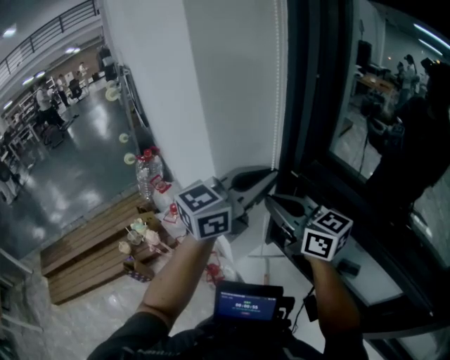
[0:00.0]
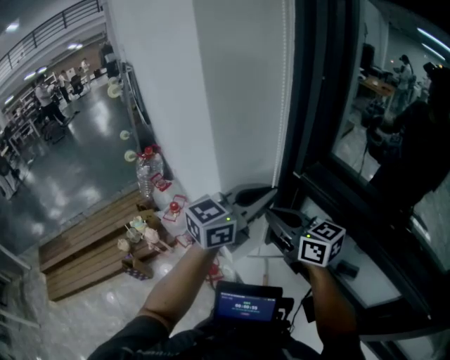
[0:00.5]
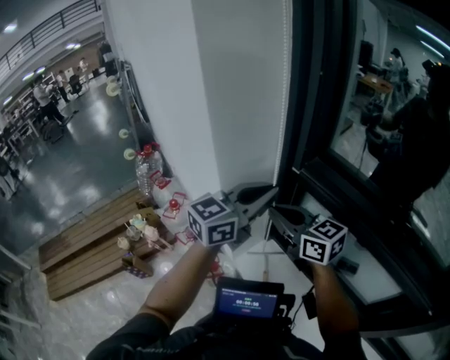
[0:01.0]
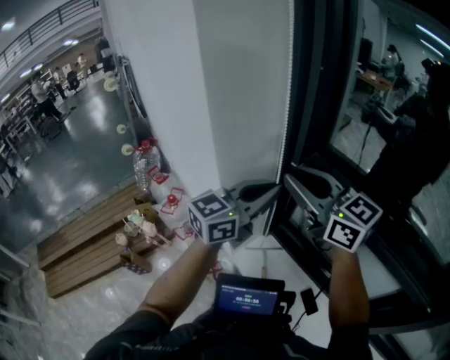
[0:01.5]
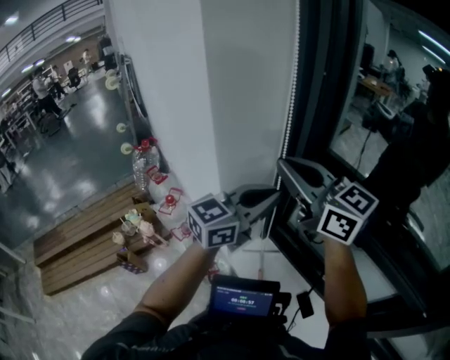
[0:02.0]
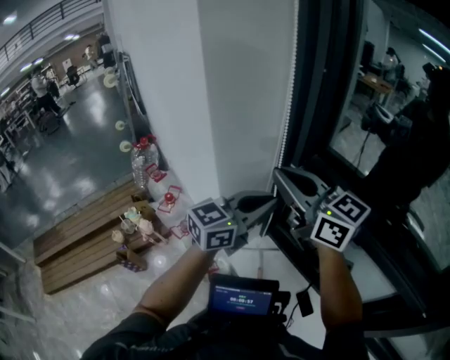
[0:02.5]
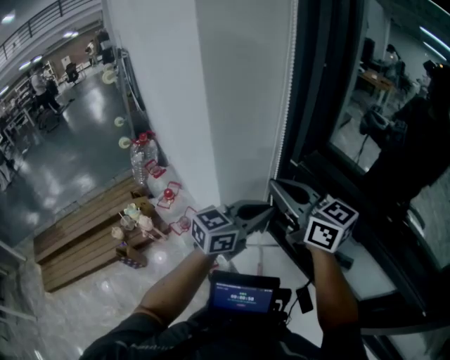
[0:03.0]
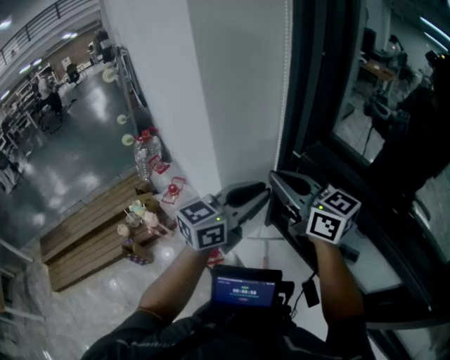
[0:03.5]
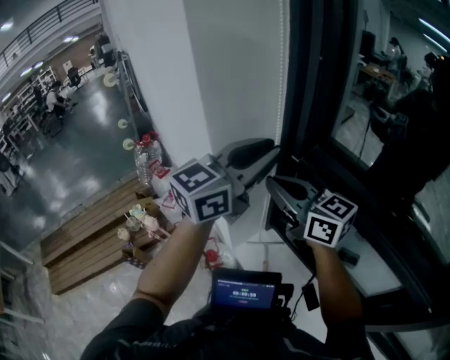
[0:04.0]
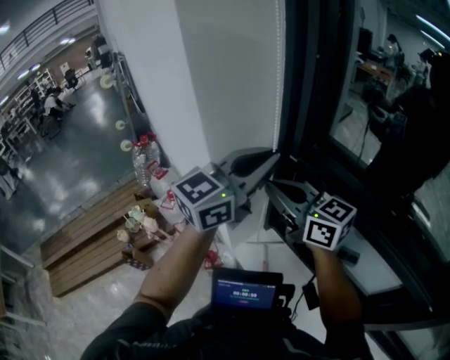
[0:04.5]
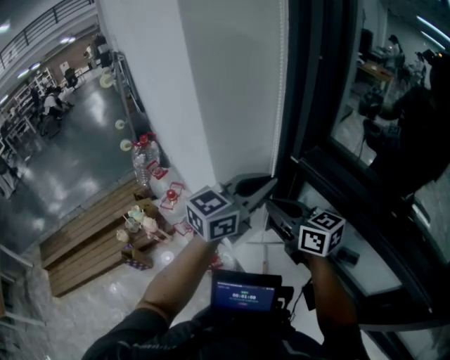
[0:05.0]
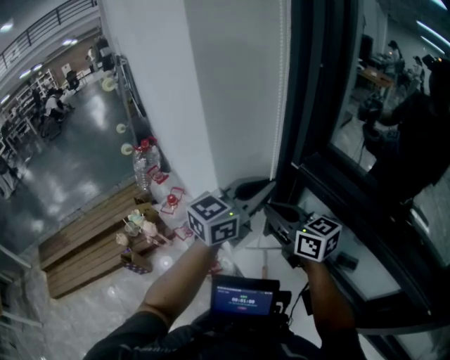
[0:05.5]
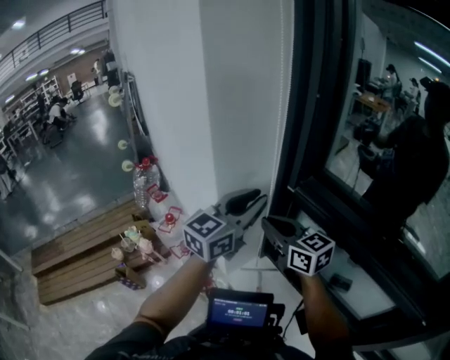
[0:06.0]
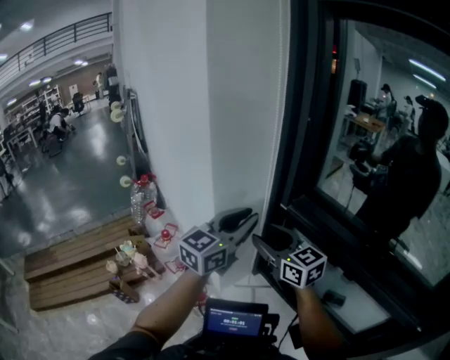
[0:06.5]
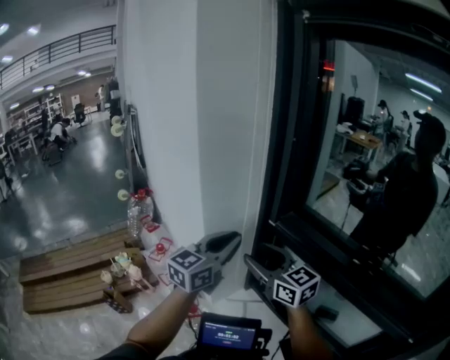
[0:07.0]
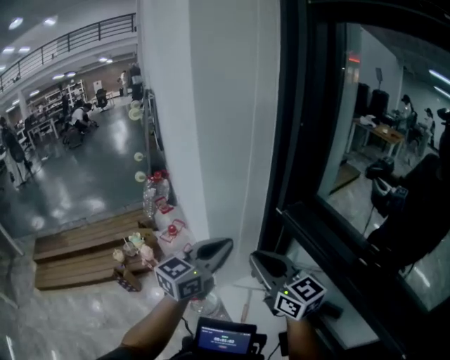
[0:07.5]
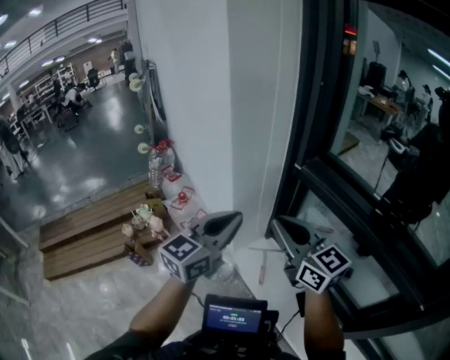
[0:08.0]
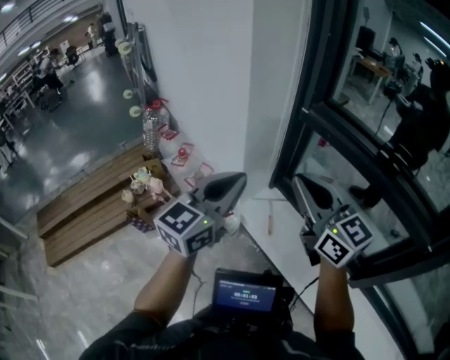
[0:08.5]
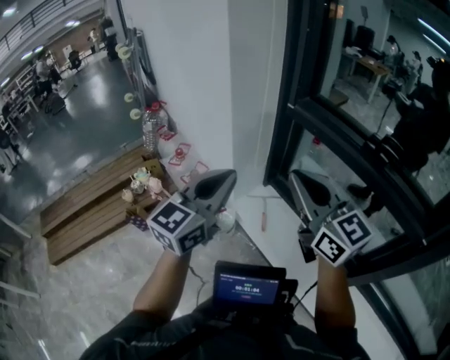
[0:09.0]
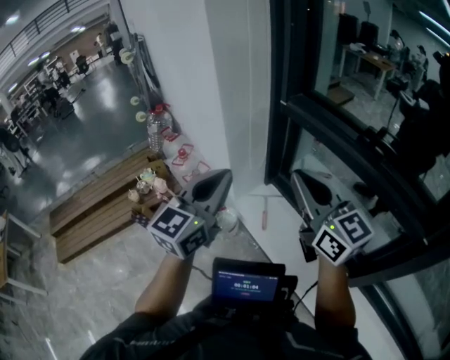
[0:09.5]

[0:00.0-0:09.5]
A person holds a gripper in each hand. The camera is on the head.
0:00.0 to 0:02.0: The right gripper is displaced upward by about 10 cm. The left gripper is displaced downward by roughly 5 cm.
0:02.0 to 0:04.0: The right gripper travels downward by about 10 cm; the left gripper shifts some 10 cm upward.
0:04.0 to 0:05.5: Both grippers move downward, roughly 10 cm.
0:05.5 to 0:07.5: The left gripper moves backward, approximately 10 cm, while the right gripper moves backward and upward, some 10 cm, and opens, then closes once more.
0:07.5 to 0:09.5: Both grippers move backward, some 20 cm.

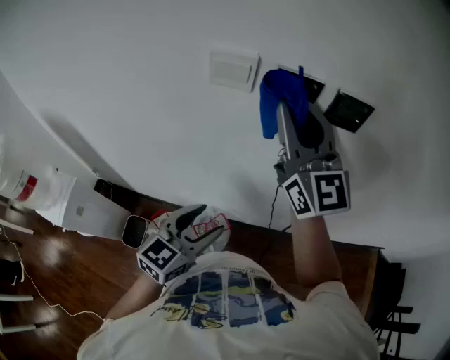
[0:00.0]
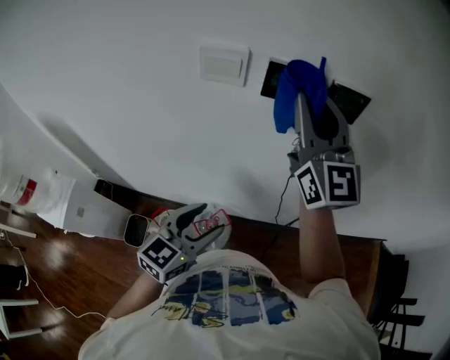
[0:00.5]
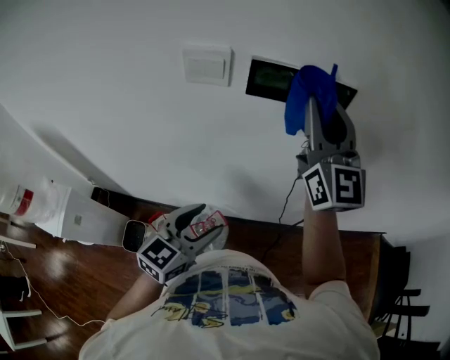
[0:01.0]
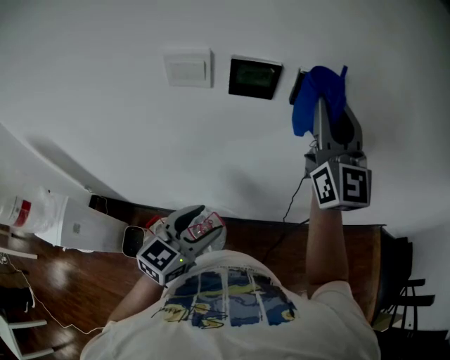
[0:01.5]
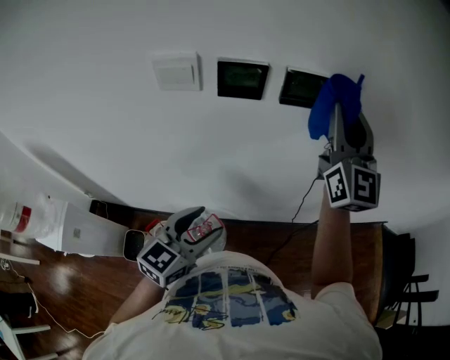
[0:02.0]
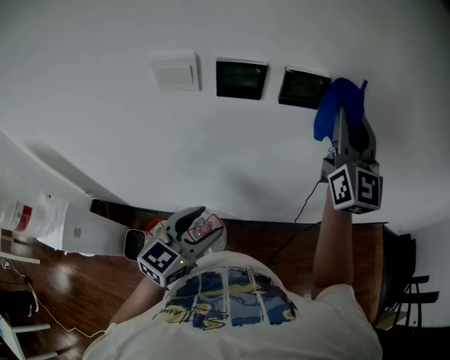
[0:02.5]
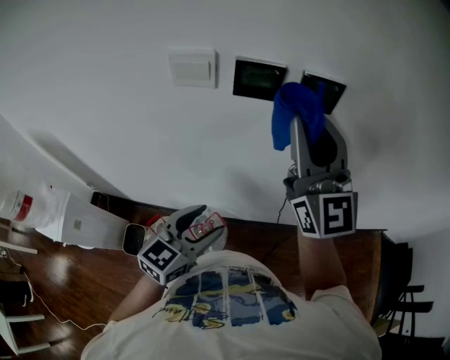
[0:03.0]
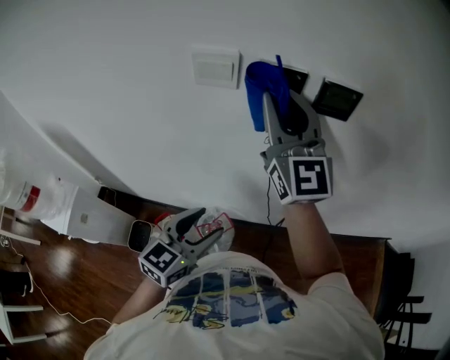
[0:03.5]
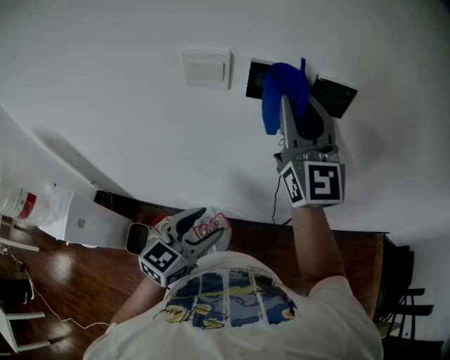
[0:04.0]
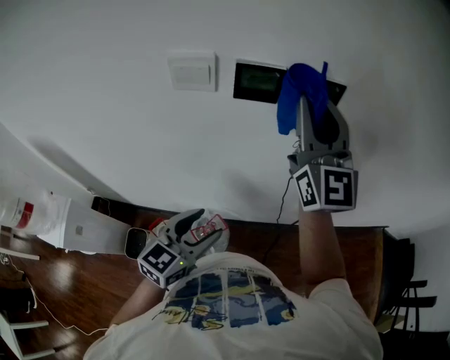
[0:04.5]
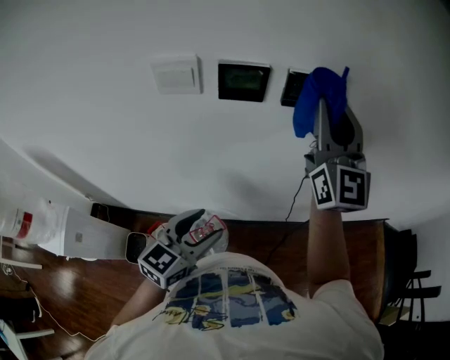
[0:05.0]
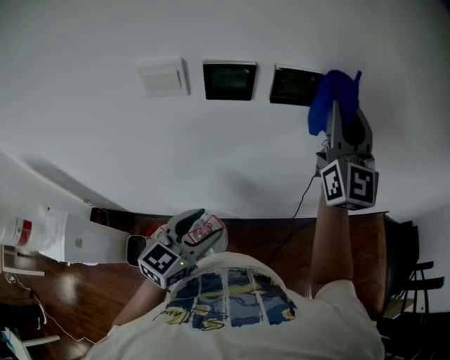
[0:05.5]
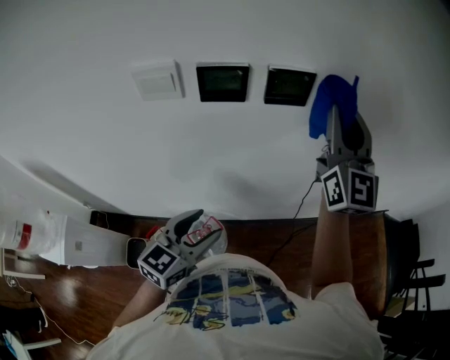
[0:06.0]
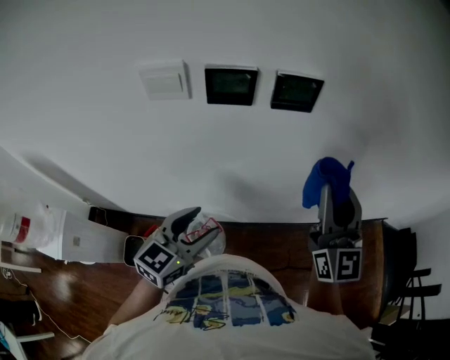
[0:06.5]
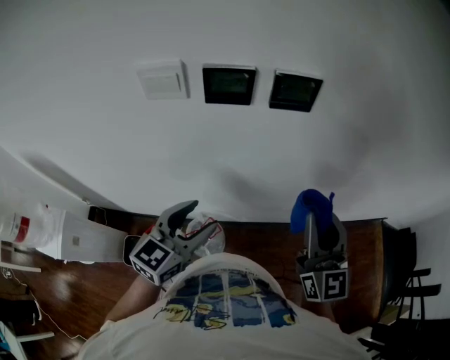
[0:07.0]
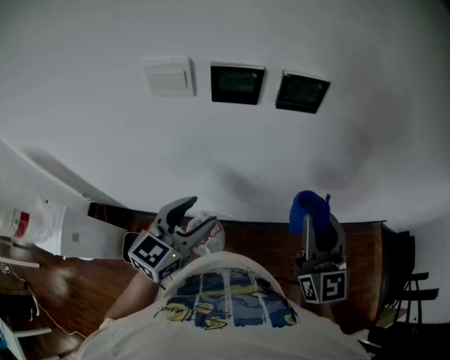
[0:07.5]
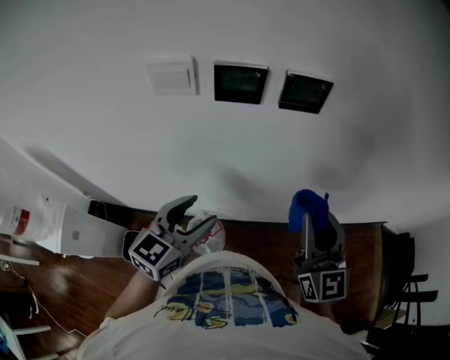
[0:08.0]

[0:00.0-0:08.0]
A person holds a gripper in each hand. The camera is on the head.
0:00.0 to 0:02.0: The left gripper goes roughly 5 cm to the right; the right gripper is displaced to the right by some 20 cm, and swivels some 20 degrees.
0:02.0 to 0:04.0: The right gripper is displaced to the left by roughly 15 cm.
0:04.0 to 0:06.0: The right gripper heads to the right, covering some 20 cm.
0:06.0 to 0:08.0: The right gripper travels backward and downward by some 20 cm.

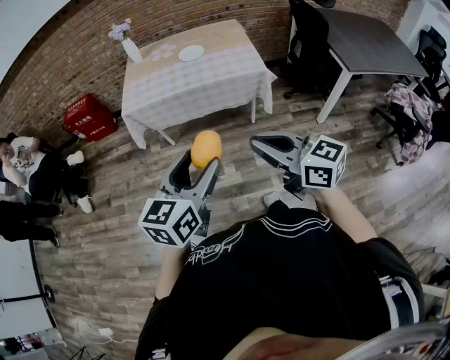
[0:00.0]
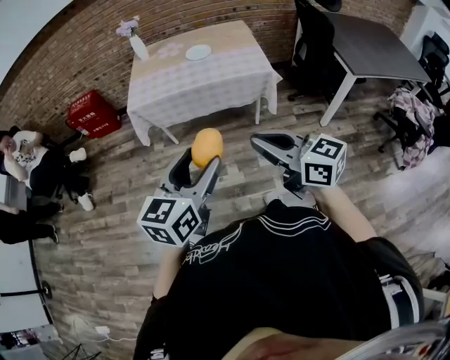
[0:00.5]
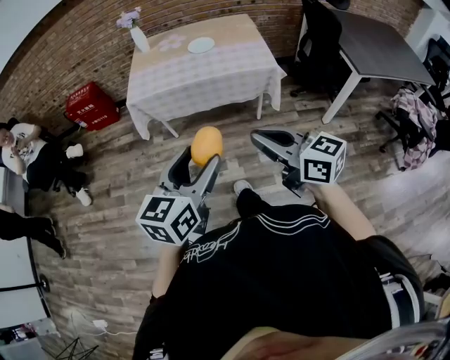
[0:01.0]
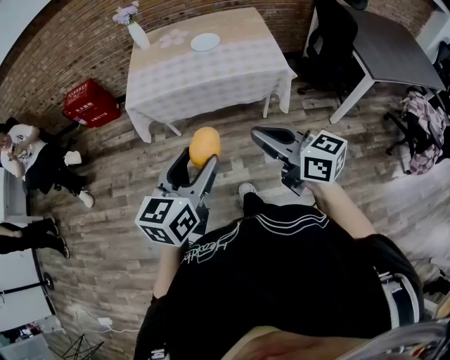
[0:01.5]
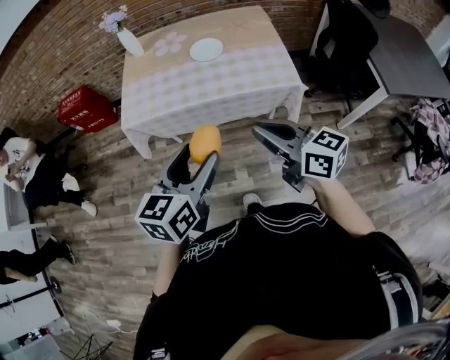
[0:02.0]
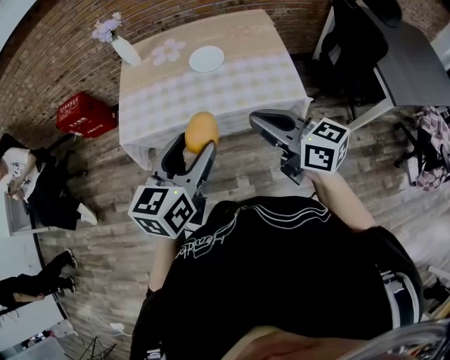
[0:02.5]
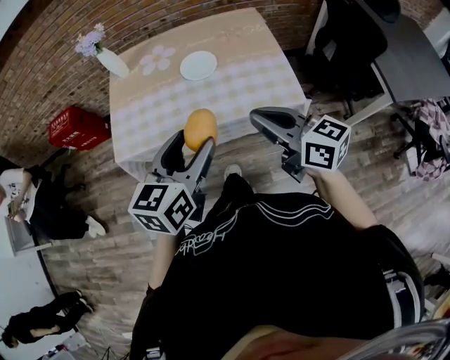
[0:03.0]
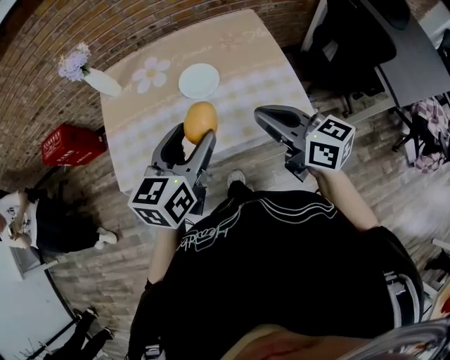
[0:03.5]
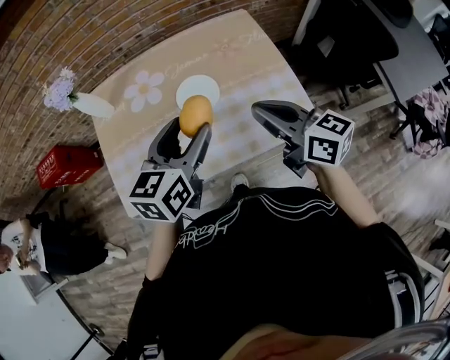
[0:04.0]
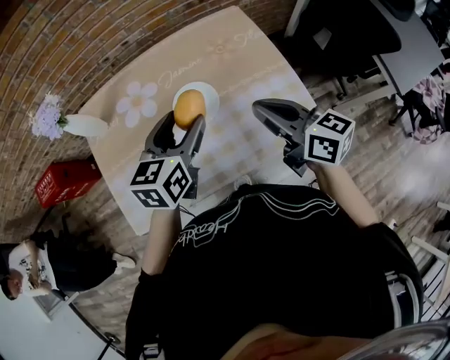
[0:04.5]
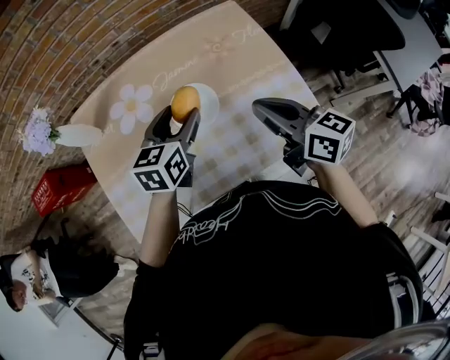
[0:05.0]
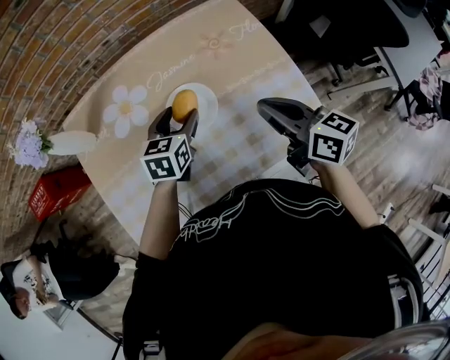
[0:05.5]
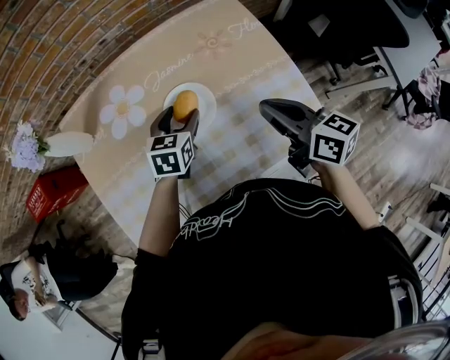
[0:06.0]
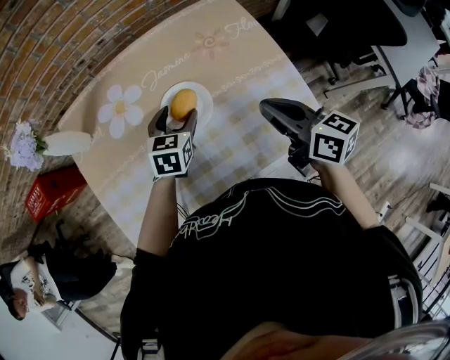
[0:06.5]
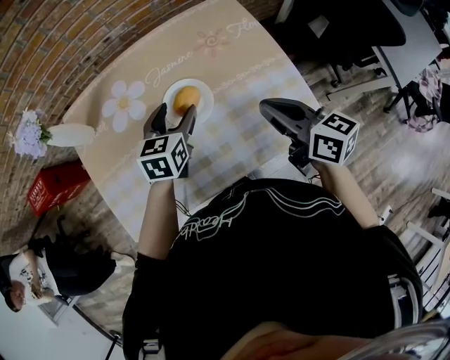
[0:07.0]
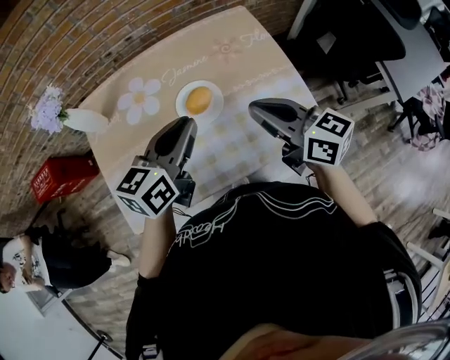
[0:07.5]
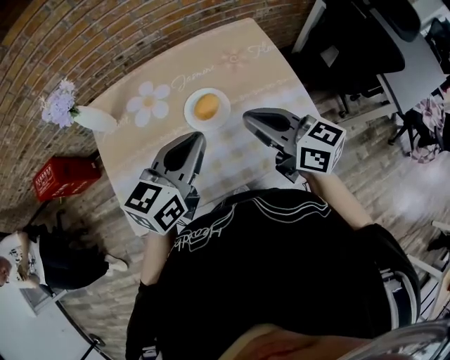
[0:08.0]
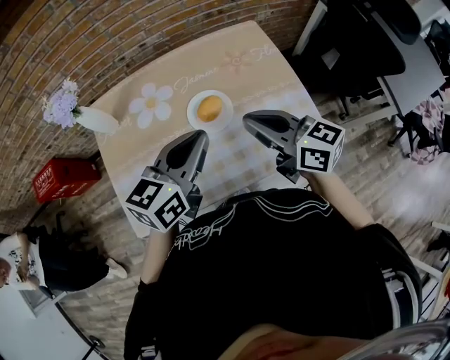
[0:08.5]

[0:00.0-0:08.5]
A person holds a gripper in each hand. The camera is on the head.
0:00.0 to 0:02.0: The grippers both shift forward by some 30 cm.
0:02.0 to 0:04.0: The two grippers go about 35 cm forward.
0:04.0 to 0:06.5: The left gripper shifts roughly 30 cm downward and forward, and turns by about 20 degrees. The right gripper travels downward and forward by approximately 10 cm.
0:06.5 to 0:08.5: The left gripper heads upward and backward, covering roughly 25 cm, turns by about 30 degrees, and closes. The right gripper shifts roughly 10 cm to the left and upward.

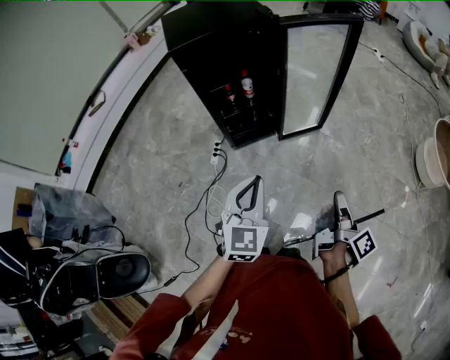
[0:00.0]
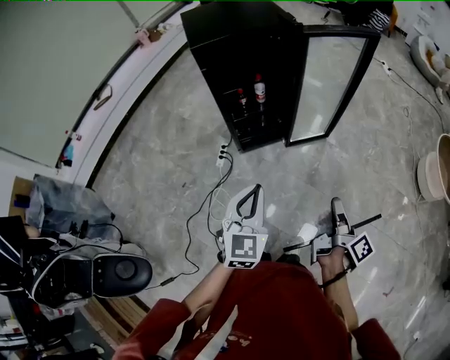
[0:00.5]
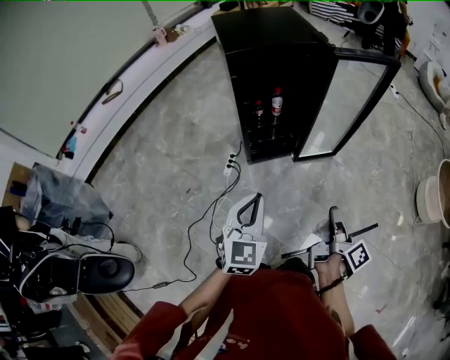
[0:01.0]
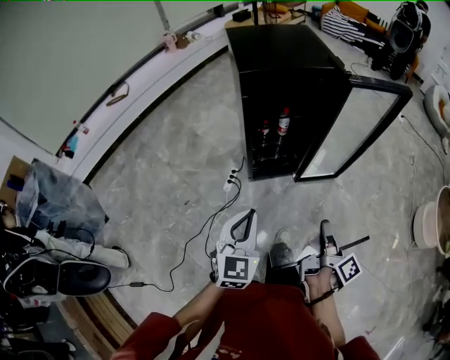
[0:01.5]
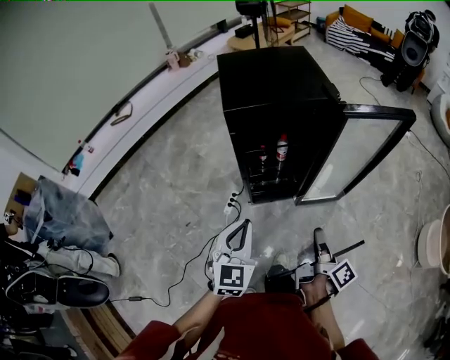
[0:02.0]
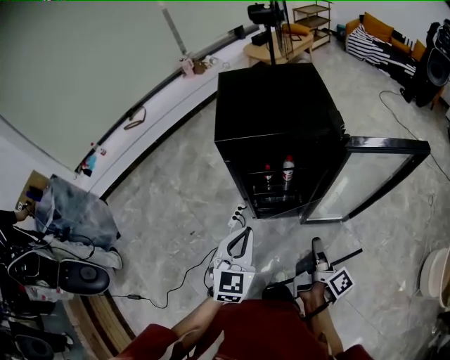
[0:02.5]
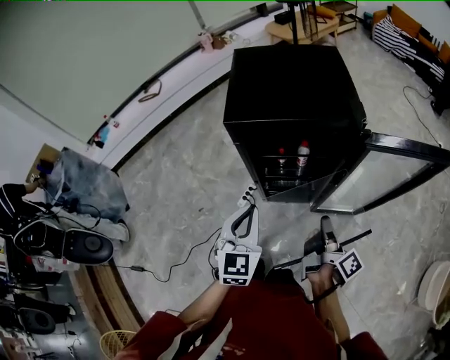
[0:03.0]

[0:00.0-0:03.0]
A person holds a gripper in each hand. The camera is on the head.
0:00.0 to 0:01.5: The two grippers go approximately 15 cm to the left.
0:01.5 to 0:03.0: Both grippers travel together forward, roughly 25 cm.
